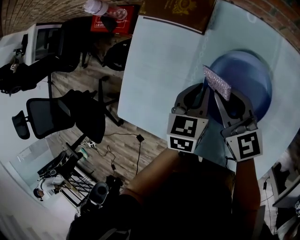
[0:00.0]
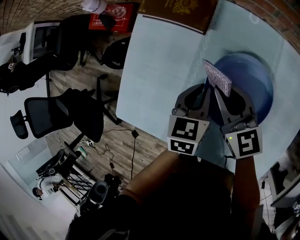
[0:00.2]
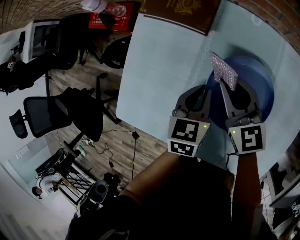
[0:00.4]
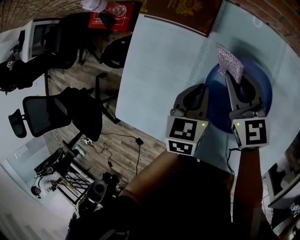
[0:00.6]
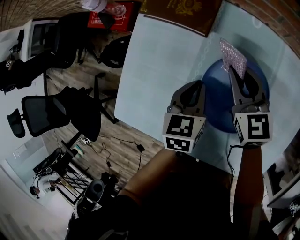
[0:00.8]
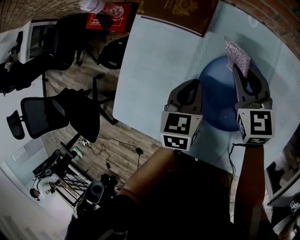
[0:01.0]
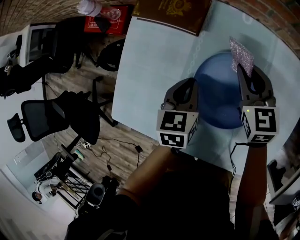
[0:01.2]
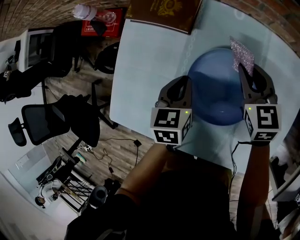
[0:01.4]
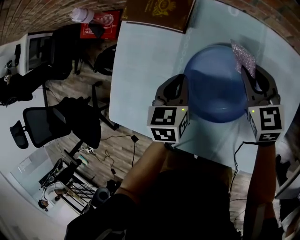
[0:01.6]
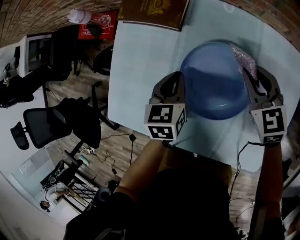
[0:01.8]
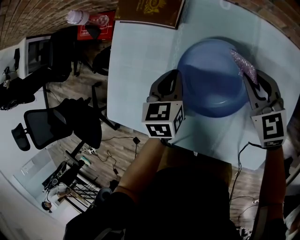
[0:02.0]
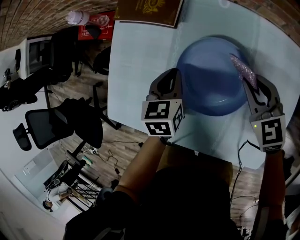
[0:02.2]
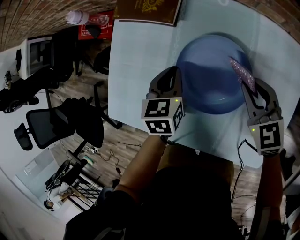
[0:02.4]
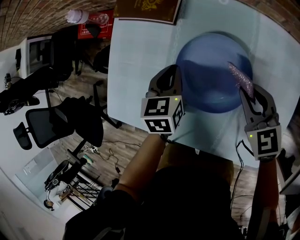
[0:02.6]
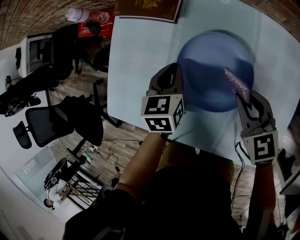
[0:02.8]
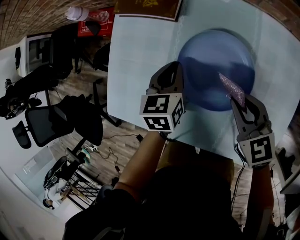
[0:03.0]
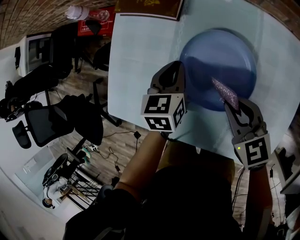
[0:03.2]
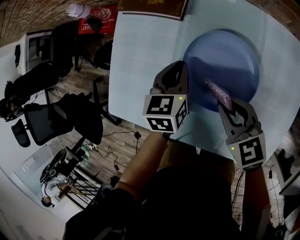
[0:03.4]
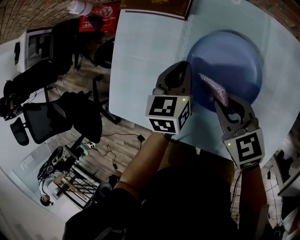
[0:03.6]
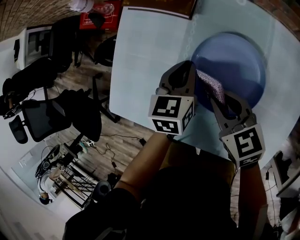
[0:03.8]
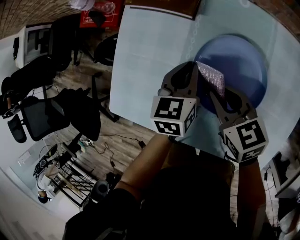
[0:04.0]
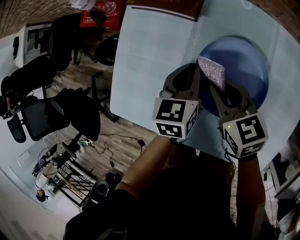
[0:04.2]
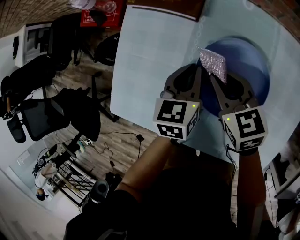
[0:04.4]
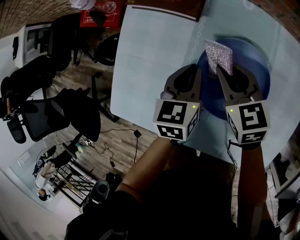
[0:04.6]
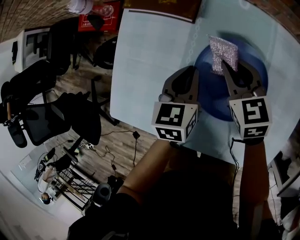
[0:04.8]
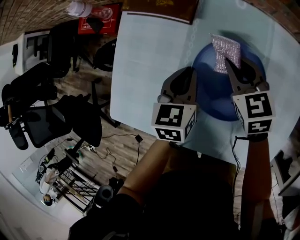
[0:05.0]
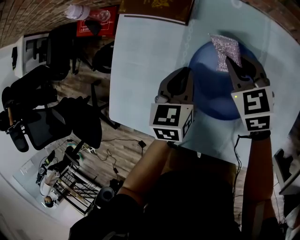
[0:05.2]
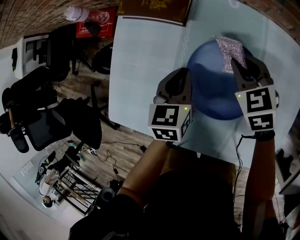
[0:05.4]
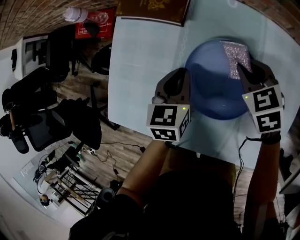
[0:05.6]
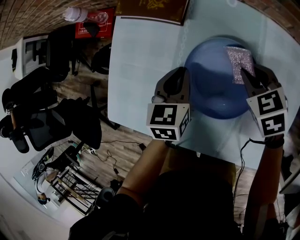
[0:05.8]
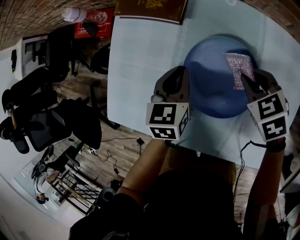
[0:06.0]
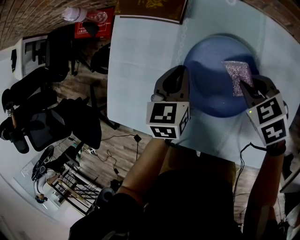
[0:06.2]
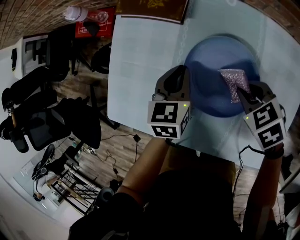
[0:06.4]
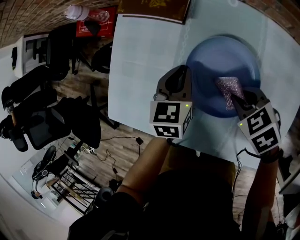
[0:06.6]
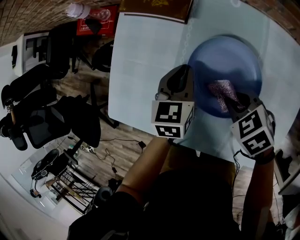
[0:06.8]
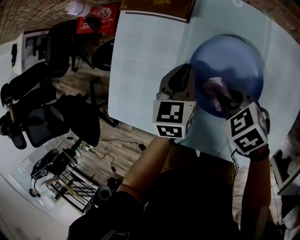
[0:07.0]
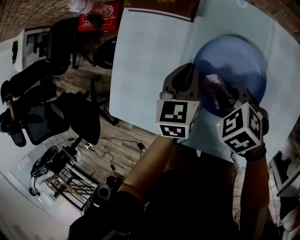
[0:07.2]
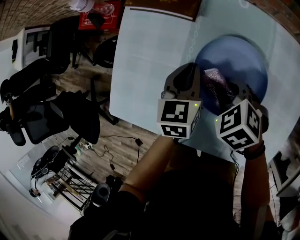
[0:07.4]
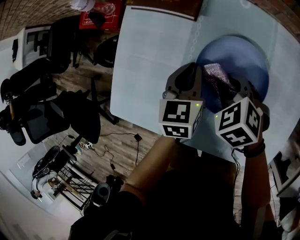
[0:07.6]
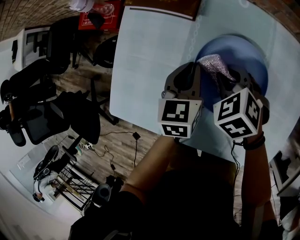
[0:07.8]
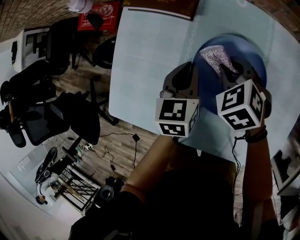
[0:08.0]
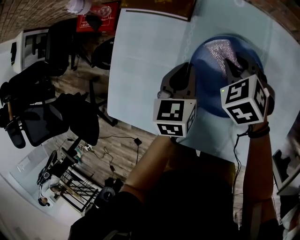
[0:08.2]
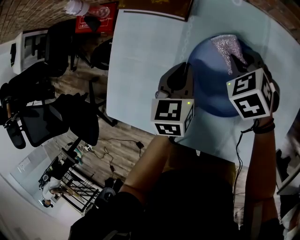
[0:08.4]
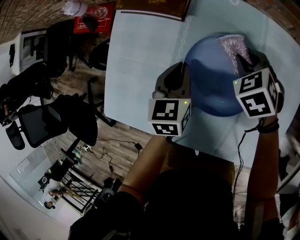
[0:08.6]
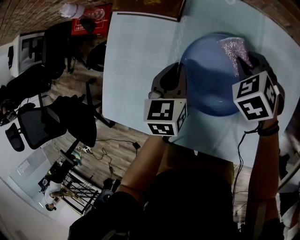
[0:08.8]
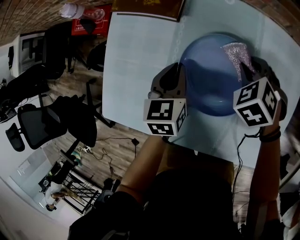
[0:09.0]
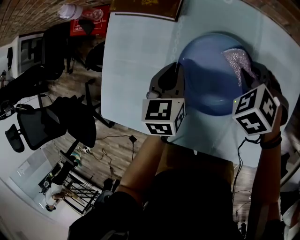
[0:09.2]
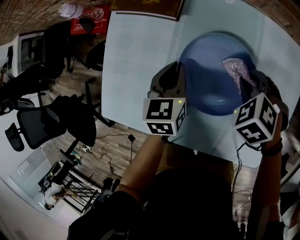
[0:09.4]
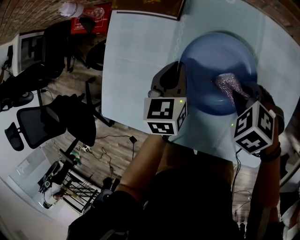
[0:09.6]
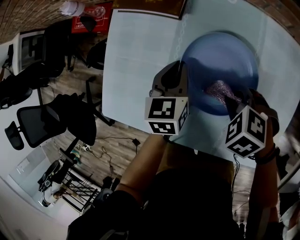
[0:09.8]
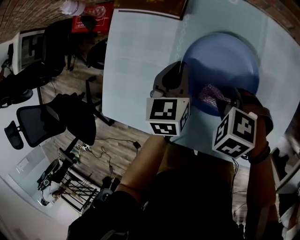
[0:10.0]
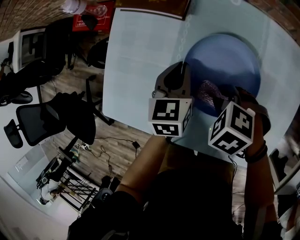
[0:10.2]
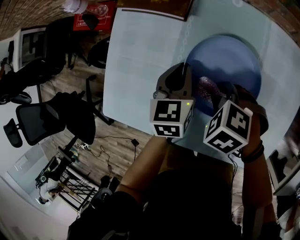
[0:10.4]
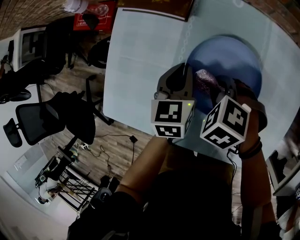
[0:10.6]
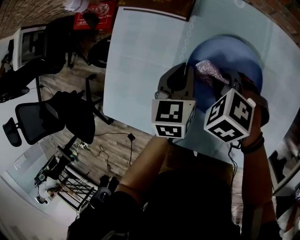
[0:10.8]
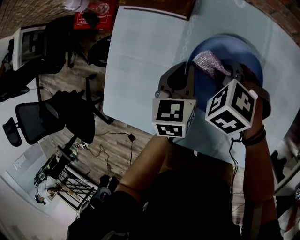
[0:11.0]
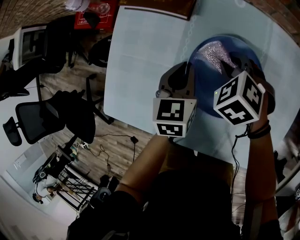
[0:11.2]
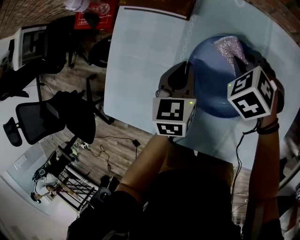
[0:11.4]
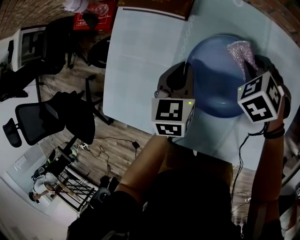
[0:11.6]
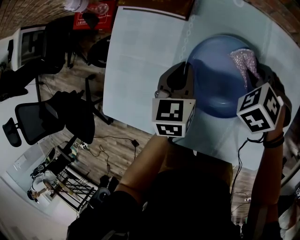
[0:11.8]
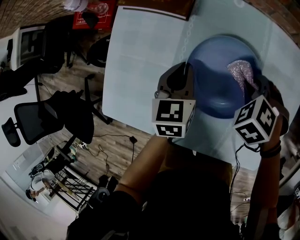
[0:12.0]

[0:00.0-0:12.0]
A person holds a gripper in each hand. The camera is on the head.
0:00.0 to 0:01.6: The right gripper heads to the right, covering approximately 15 cm, and rotates about 30 degrees.
0:01.6 to 0:03.0: The right gripper moves backward, approximately 10 cm.
0:03.0 to 0:04.4: The right gripper goes roughly 15 cm forward and to the left.
0:04.4 to 0:06.0: The right gripper heads to the right, covering some 15 cm, and swivels approximately 30 degrees.
0:06.0 to 0:07.6: The right gripper travels to the left by approximately 10 cm.
0:07.6 to 0:09.0: The right gripper goes approximately 15 cm to the right and forward.
0:09.0 to 0:10.4: The right gripper ends up approximately 15 cm from where it was, and rotates roughly 20 degrees.
0:10.4 to 0:12.0: The right gripper shifts by about 10 cm.

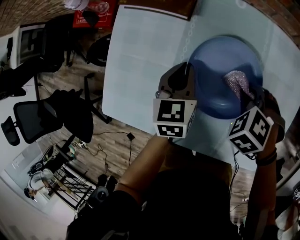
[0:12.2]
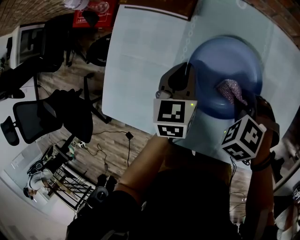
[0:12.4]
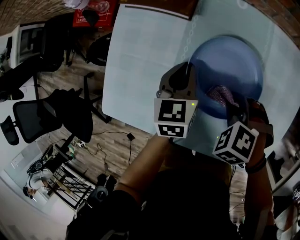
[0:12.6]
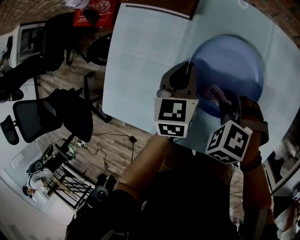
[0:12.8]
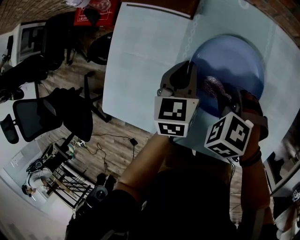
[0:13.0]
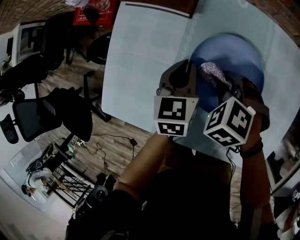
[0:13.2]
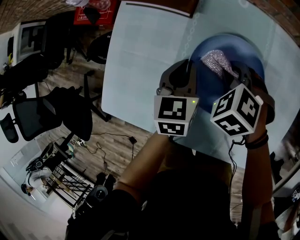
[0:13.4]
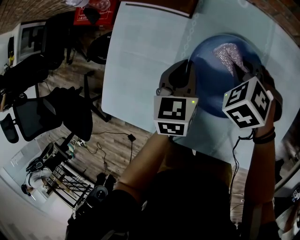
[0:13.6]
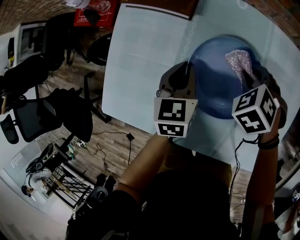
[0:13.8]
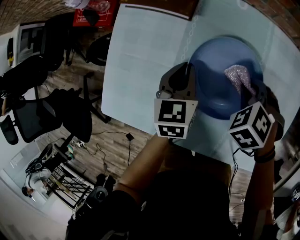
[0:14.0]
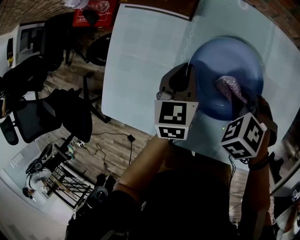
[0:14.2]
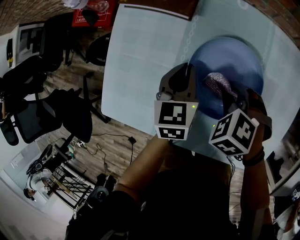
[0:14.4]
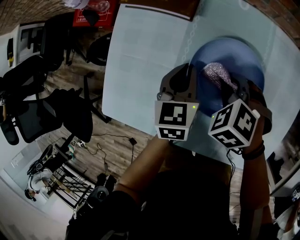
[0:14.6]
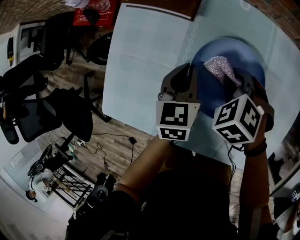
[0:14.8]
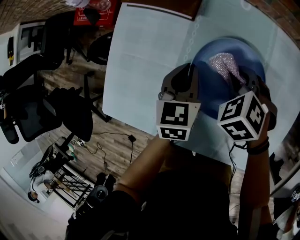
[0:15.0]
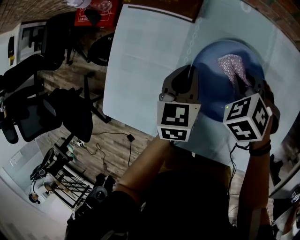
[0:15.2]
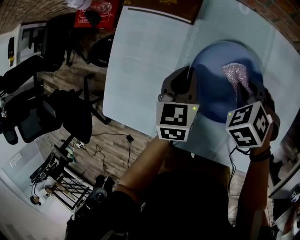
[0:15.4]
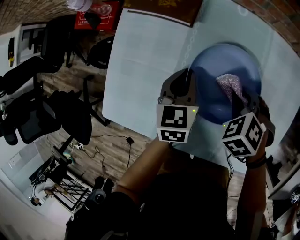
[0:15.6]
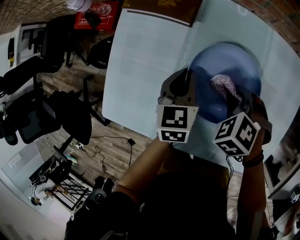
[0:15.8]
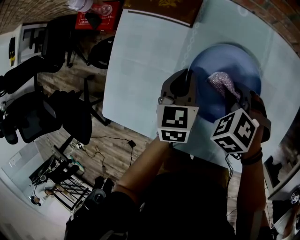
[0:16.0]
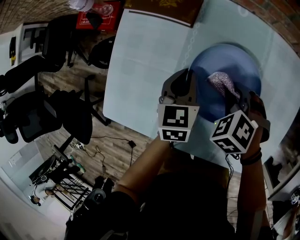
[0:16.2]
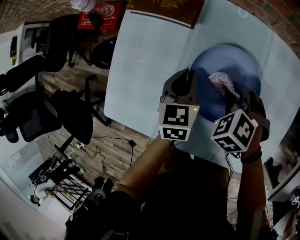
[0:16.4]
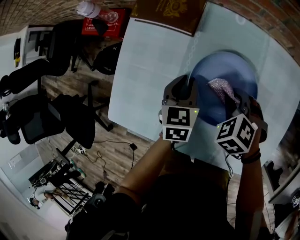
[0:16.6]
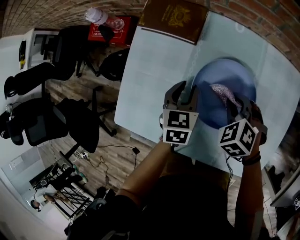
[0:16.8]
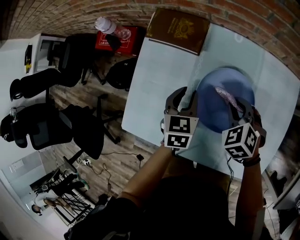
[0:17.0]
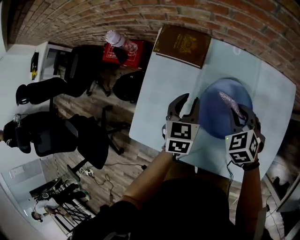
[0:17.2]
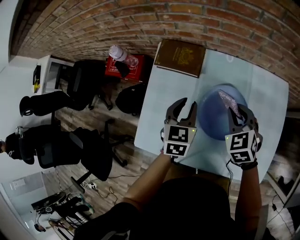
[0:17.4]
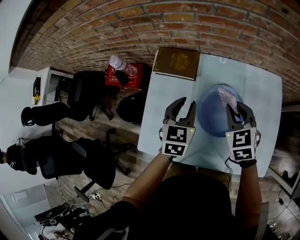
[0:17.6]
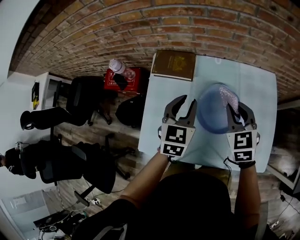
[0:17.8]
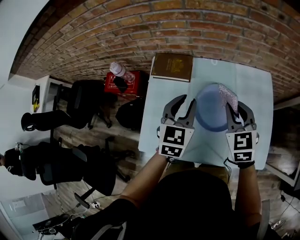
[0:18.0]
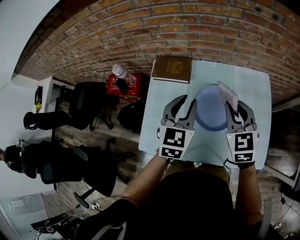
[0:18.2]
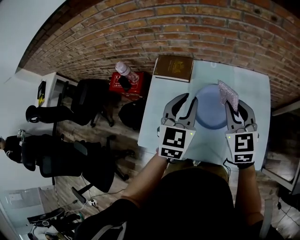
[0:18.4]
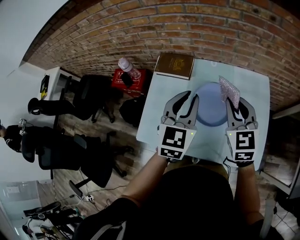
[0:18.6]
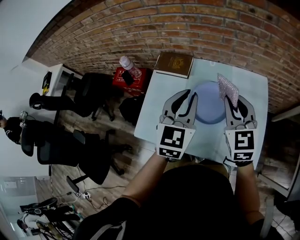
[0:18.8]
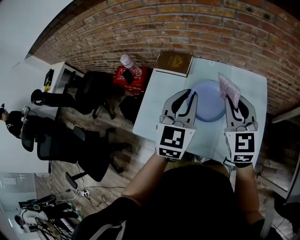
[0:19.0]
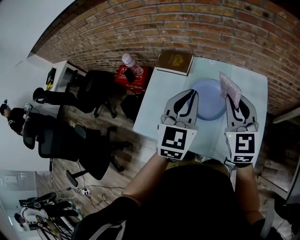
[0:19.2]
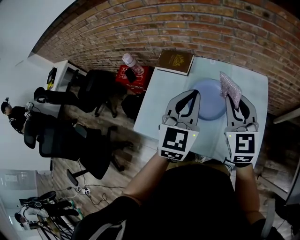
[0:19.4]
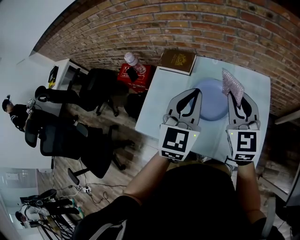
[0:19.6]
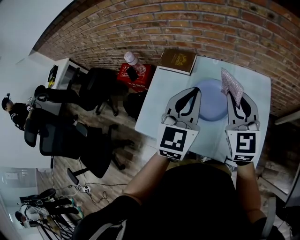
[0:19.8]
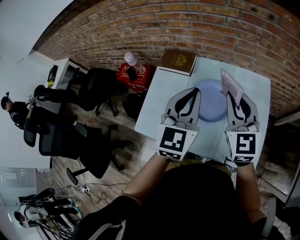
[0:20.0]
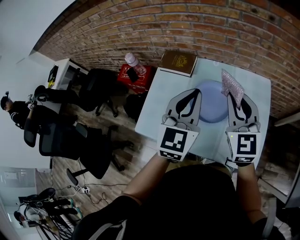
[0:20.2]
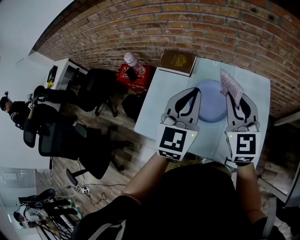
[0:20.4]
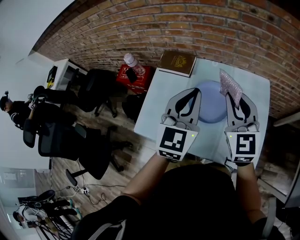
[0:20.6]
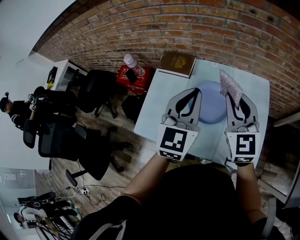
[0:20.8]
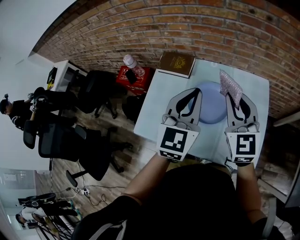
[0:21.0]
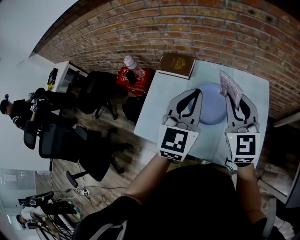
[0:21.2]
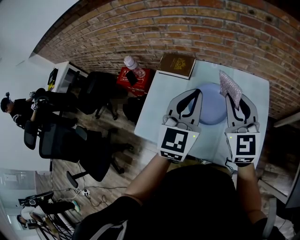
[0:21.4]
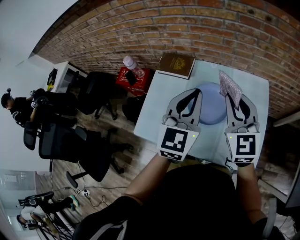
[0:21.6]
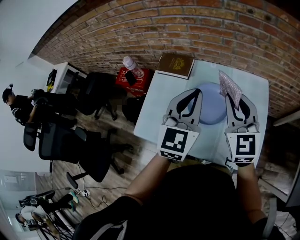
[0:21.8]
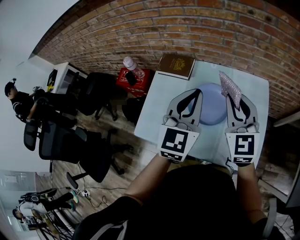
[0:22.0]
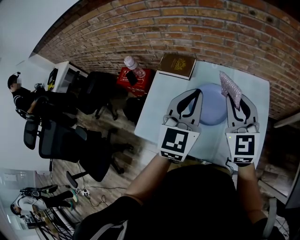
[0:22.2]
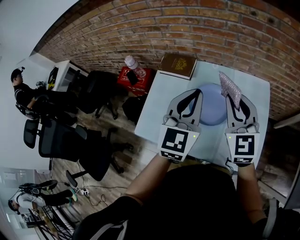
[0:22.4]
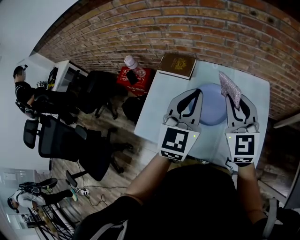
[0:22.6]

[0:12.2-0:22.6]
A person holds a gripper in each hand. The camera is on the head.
0:12.2 to 0:13.6: The right gripper shifts by some 10 cm.
0:15.2 to 0:16.6: There are only small adjustments of the grippers.
0:16.6 to 0:18.2: The grippers both shift upward by approximately 30 cm. The right gripper points its fingers some 40 degrees further upward. Meanwhile the left gripper rotates some 30 degrees.
0:18.2 to 0:19.6: The right gripper goes approximately 10 cm upward, backward and to the right. Meanwhile the left gripper heads backward, to the right and upward, covering some 15 cm, and closes up.
0:19.6 to 0:21.2: The grippers stay close to where they were, moving slightly.
0:21.2 to 0:22.6: Both grippers stay put.

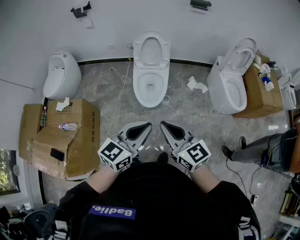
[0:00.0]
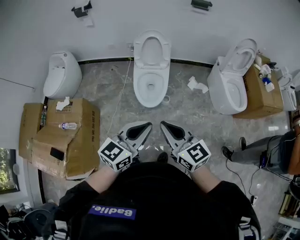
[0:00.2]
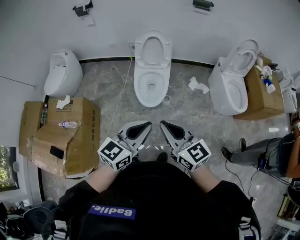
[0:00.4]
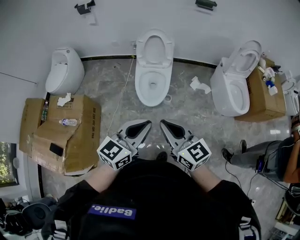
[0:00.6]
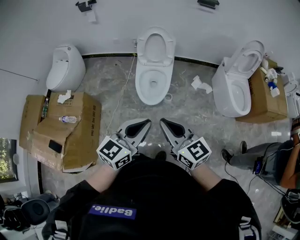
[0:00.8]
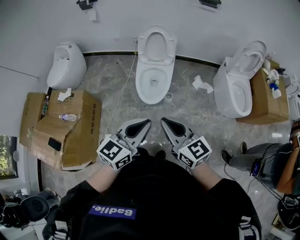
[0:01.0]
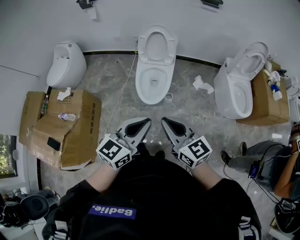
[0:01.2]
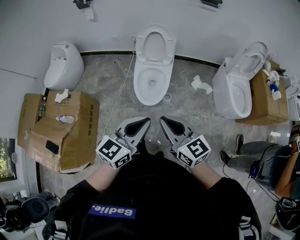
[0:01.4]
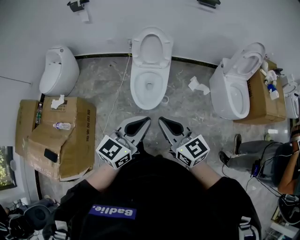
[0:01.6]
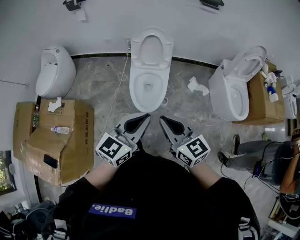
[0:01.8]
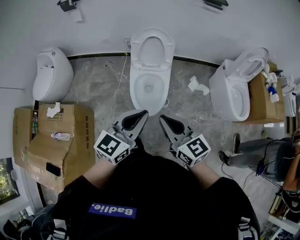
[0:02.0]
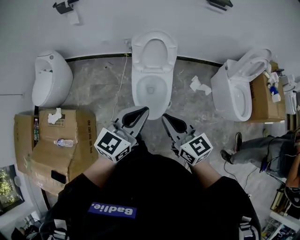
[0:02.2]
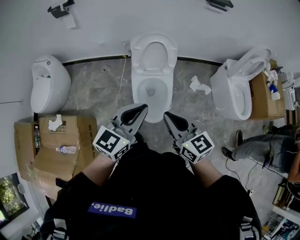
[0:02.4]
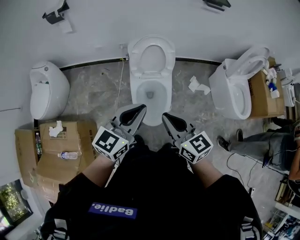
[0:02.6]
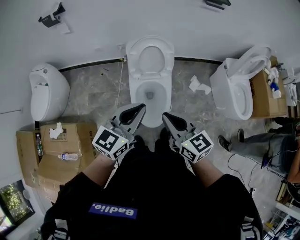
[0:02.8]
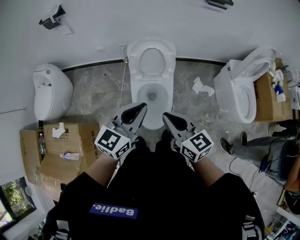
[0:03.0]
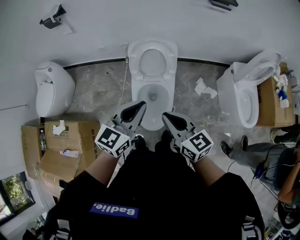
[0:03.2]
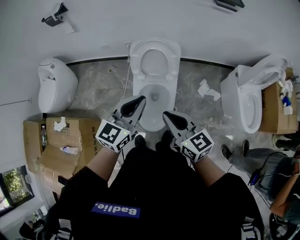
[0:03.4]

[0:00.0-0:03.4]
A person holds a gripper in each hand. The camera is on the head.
0:00.0 to 0:01.6: The two grippers go some 10 cm forward.
0:01.6 to 0:03.4: Both grippers travel together forward, roughly 35 cm.
